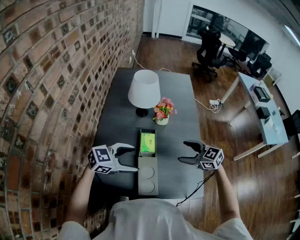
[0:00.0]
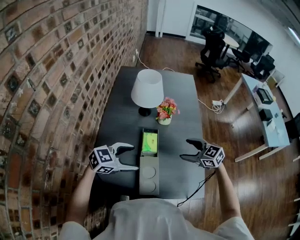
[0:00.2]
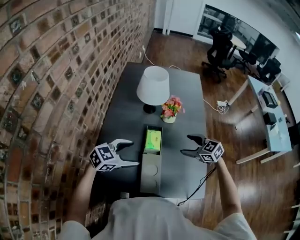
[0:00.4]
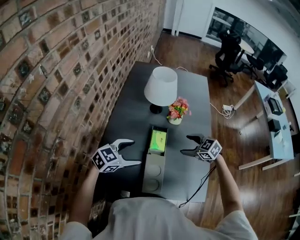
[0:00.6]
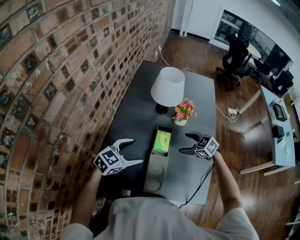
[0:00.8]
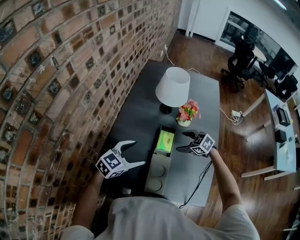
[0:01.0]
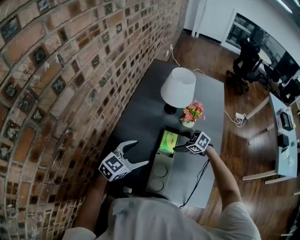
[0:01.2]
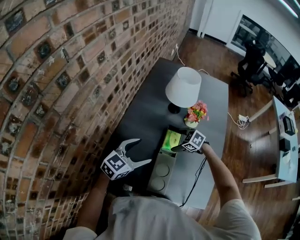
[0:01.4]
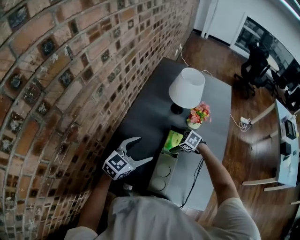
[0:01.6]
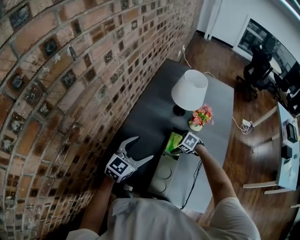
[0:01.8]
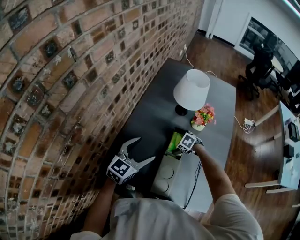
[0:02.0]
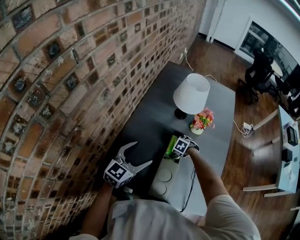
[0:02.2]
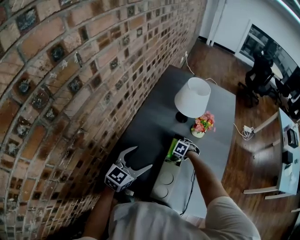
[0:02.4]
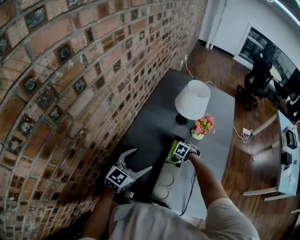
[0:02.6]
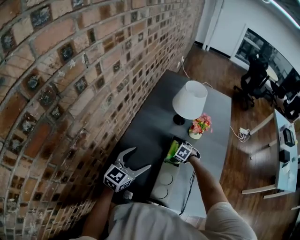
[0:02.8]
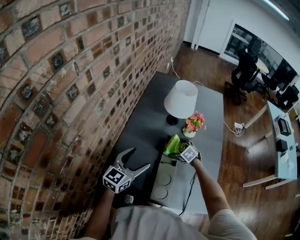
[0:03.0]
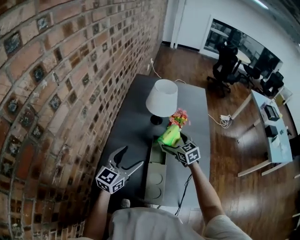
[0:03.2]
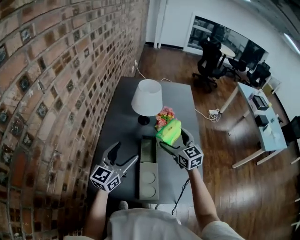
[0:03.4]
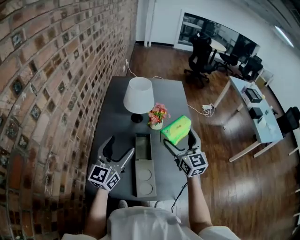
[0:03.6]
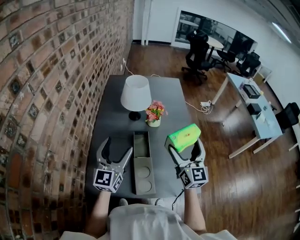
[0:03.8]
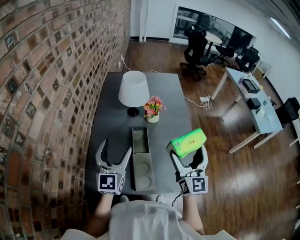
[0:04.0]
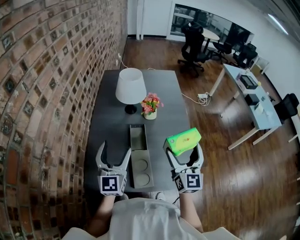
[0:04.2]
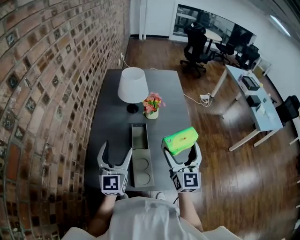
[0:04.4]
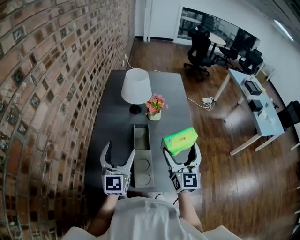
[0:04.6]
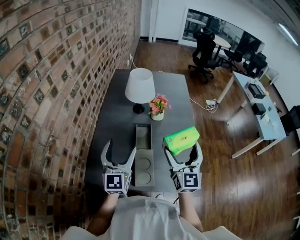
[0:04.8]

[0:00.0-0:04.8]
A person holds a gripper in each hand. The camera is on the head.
0:00.0 to 0:01.6: The left gripper shifts by about 10 cm, and turns by roughly 40 degrees. Meanwhile the right gripper travels downward by about 20 cm, angles its fingers downward, by some 30 degrees, and opens its fingers.
0:01.6 to 0:03.2: The left gripper goes approximately 5 cm upward, while the right gripper is displaced upward by approximately 15 cm, and angles its fingers upward, by roughly 30 degrees.
0:03.2 to 0:04.8: The right gripper goes some 30 cm backward, upward and to the right, and tilts its fingers roughly 40 degrees upward. The left gripper heads upward, covering roughly 5 cm, and rotates approximately 30 degrees.

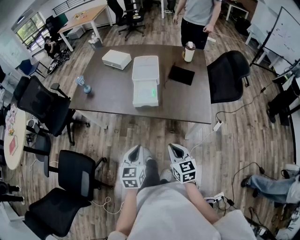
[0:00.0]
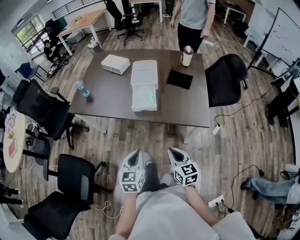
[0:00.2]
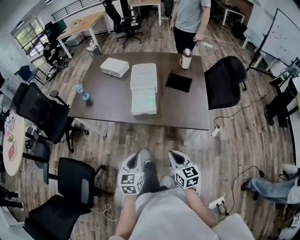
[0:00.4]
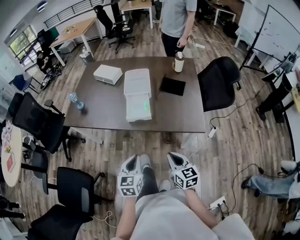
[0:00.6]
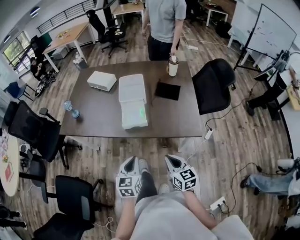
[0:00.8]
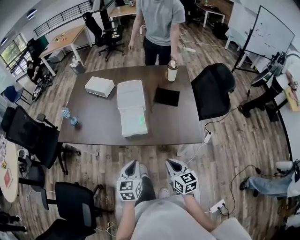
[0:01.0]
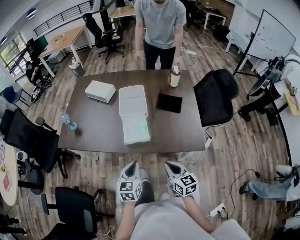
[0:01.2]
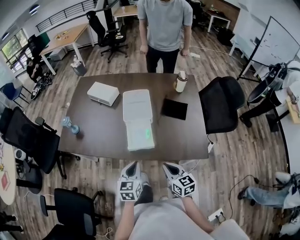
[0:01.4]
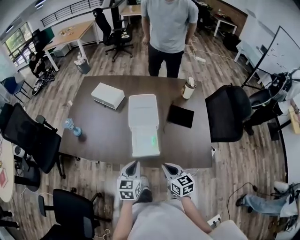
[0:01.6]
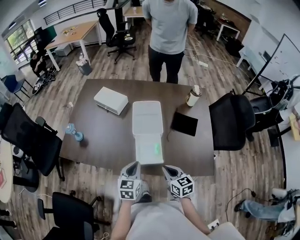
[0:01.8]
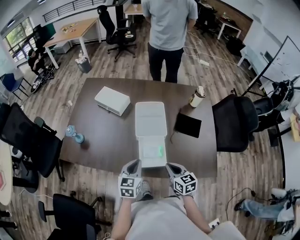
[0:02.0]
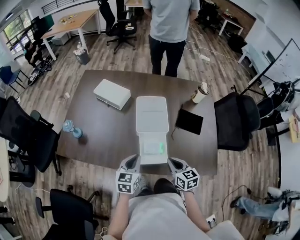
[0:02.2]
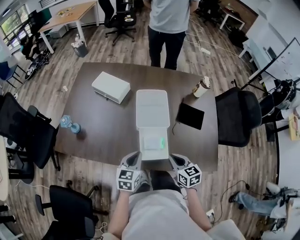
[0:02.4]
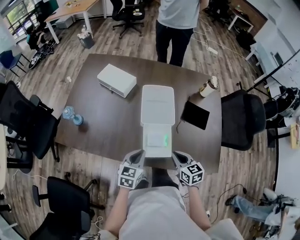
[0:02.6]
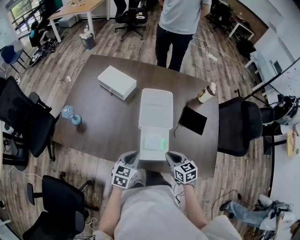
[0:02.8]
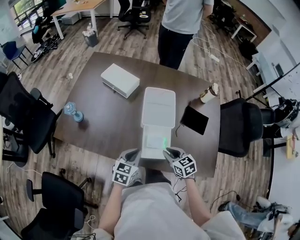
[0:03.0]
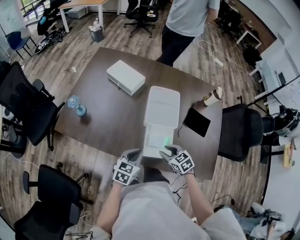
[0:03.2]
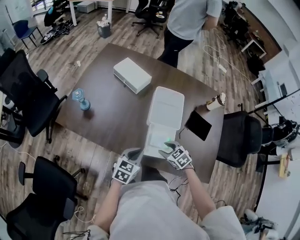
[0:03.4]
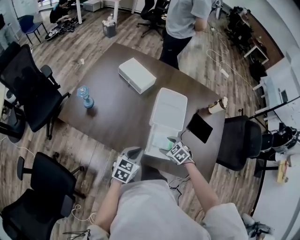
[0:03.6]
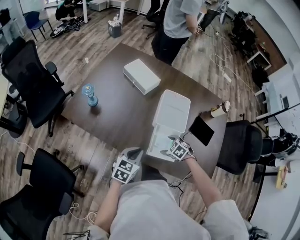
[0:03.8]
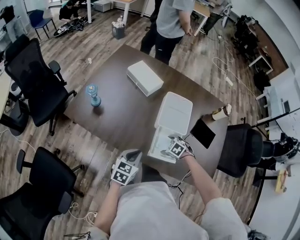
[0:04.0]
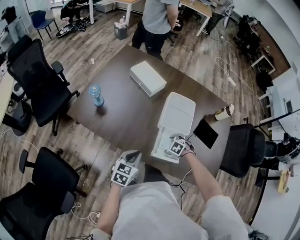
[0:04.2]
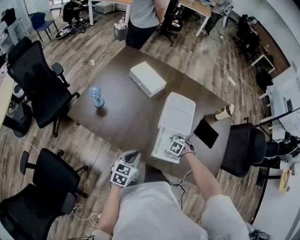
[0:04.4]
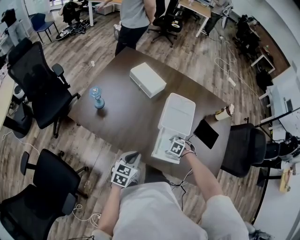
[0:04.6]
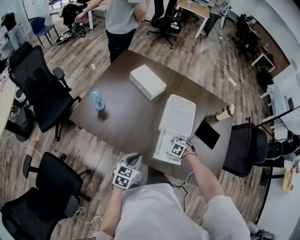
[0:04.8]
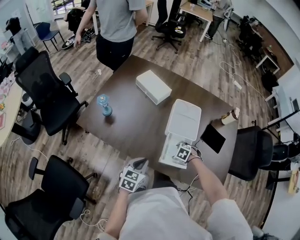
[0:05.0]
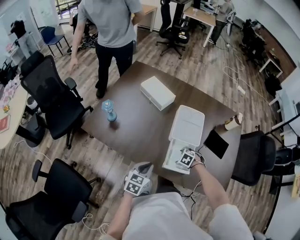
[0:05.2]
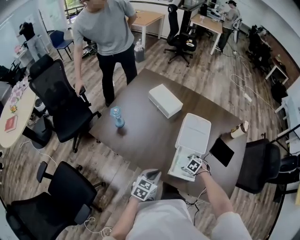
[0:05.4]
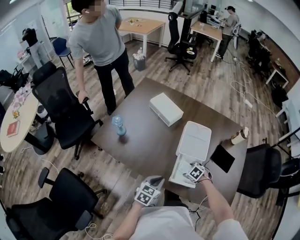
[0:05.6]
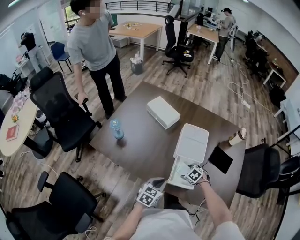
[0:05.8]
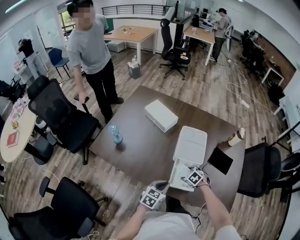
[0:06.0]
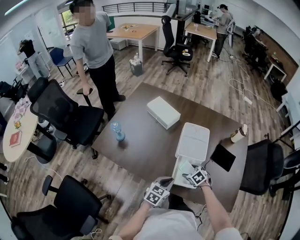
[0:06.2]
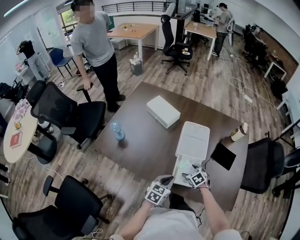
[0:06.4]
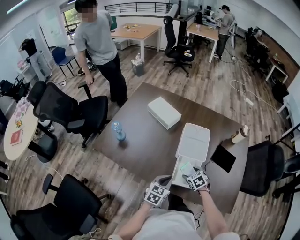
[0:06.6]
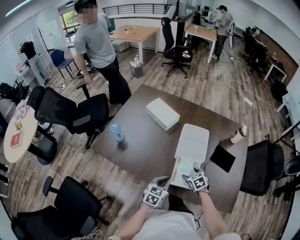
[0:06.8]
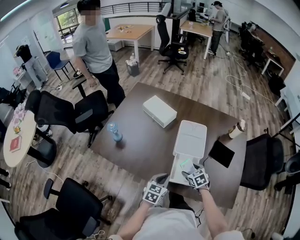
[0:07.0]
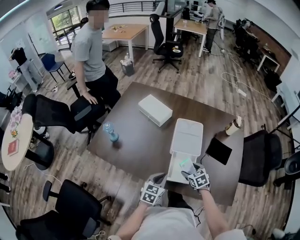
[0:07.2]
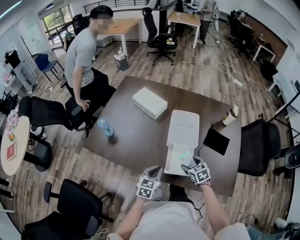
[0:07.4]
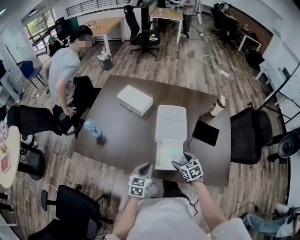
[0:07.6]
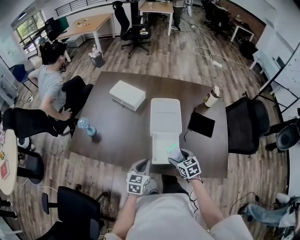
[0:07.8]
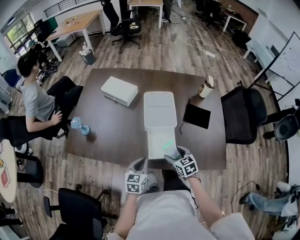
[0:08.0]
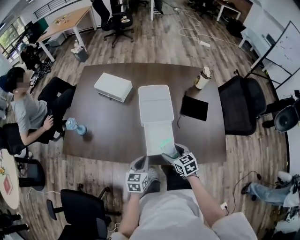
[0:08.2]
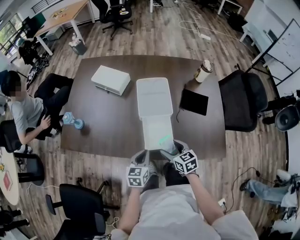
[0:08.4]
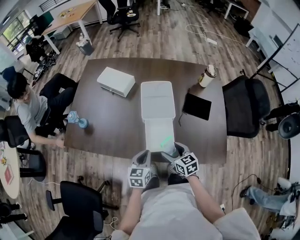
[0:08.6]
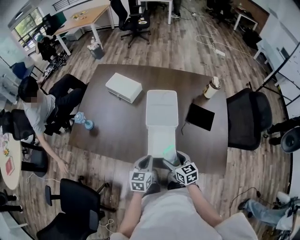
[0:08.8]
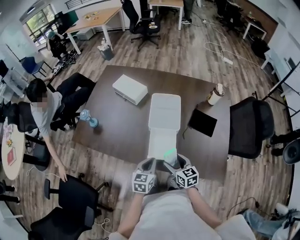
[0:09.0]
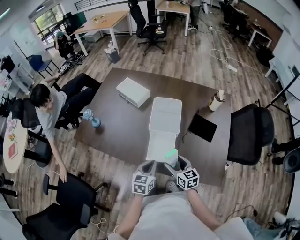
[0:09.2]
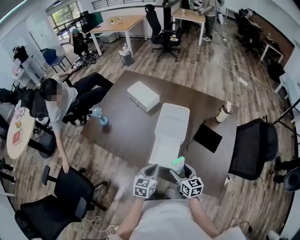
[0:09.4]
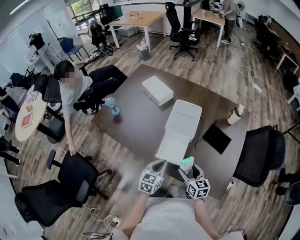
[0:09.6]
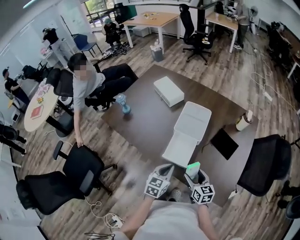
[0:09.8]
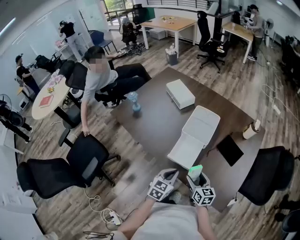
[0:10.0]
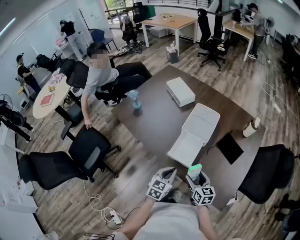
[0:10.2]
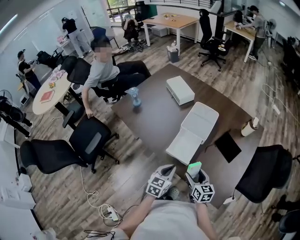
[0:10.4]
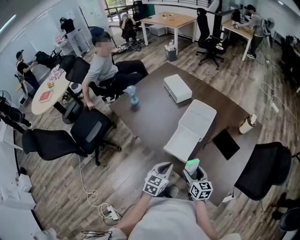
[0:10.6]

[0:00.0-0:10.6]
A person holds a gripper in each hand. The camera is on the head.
0:00.0 to 0:01.6: Both grippers move forward, some 25 cm.
0:01.6 to 0:03.0: The right gripper shifts roughly 15 cm forward and downward, and changes its angle by some 20 degrees. Meanwhile the left gripper goes some 15 cm forward, downward and to the left.
0:03.0 to 0:04.6: The left gripper ends up approximately 10 cm from where it was, while the right gripper moves downward, about 15 cm, tilts its fingers some 40 degrees downward, and opens up.
0:04.6 to 0:06.0: The right gripper rotates approximately 20 degrees. Meanwhile the left gripper changes place by approximately 10 cm.
0:06.0 to 0:07.6: The right gripper shifts about 10 cm upward, and changes its angle by approximately 40 degrees.
0:07.6 to 0:09.0: The left gripper moves to the right, about 10 cm, while the right gripper shifts approximately 5 cm backward, and turns by about 20 degrees.
0:09.0 to 0:10.6: The right gripper travels to the right and backward by some 10 cm, while the left gripper moves backward, approximately 10 cm.

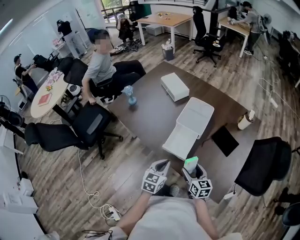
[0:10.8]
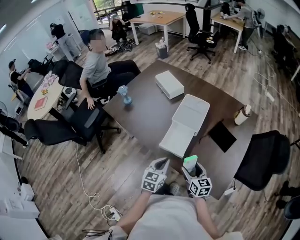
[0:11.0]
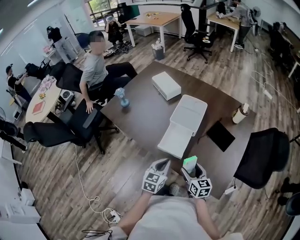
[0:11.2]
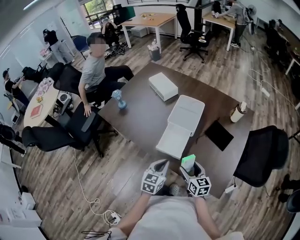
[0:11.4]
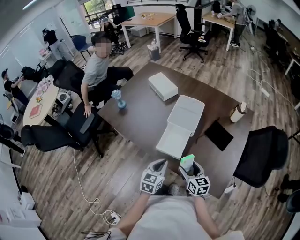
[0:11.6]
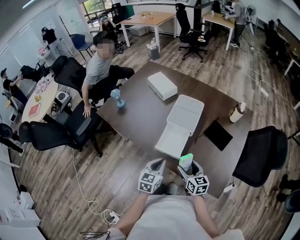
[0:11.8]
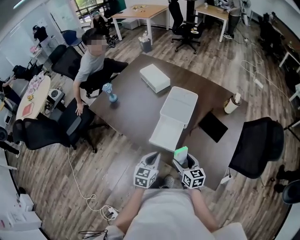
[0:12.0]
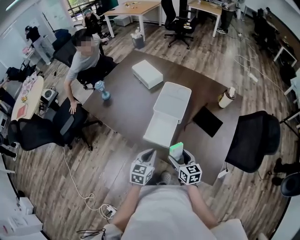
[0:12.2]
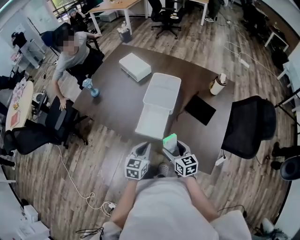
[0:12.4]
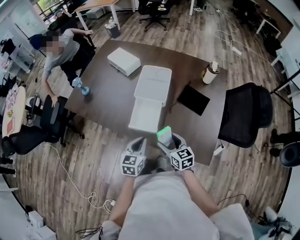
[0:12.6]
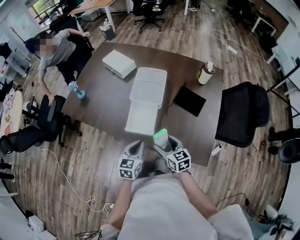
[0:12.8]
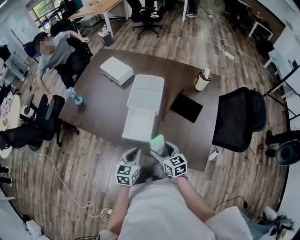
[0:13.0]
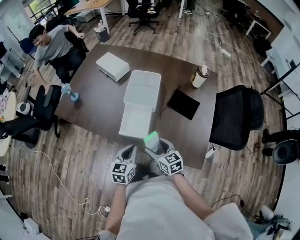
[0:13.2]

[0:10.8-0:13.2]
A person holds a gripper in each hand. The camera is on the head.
0:10.8 to 0:13.2: The grippers stay close to where they were, moving slightly.

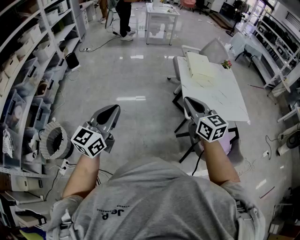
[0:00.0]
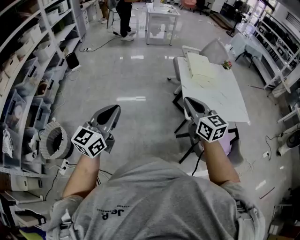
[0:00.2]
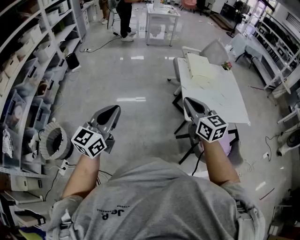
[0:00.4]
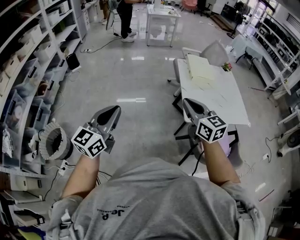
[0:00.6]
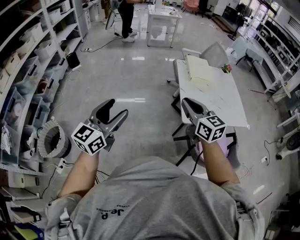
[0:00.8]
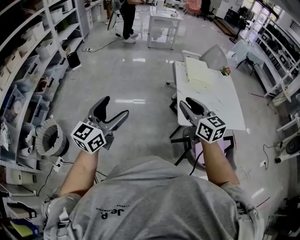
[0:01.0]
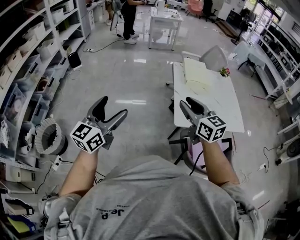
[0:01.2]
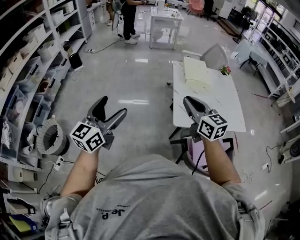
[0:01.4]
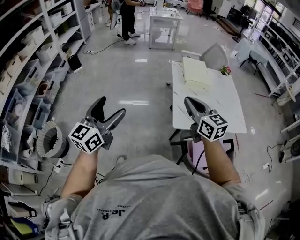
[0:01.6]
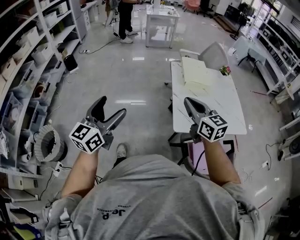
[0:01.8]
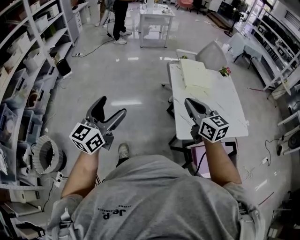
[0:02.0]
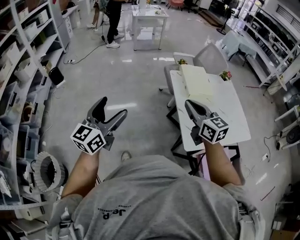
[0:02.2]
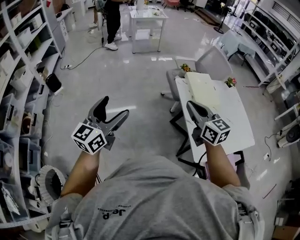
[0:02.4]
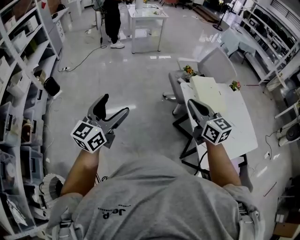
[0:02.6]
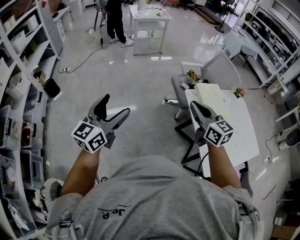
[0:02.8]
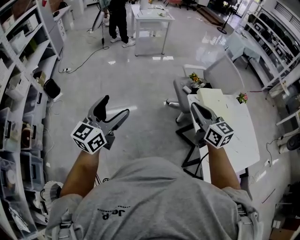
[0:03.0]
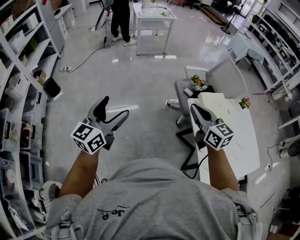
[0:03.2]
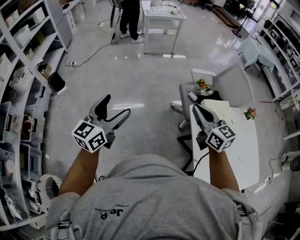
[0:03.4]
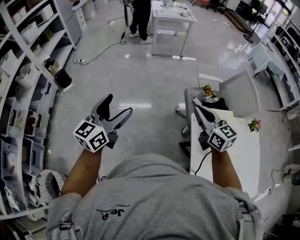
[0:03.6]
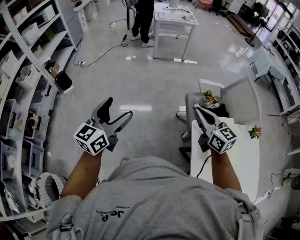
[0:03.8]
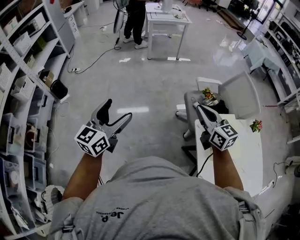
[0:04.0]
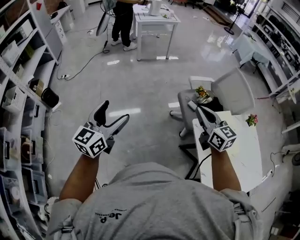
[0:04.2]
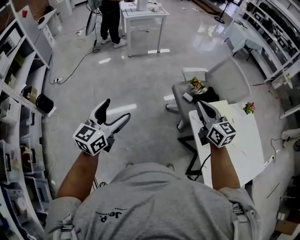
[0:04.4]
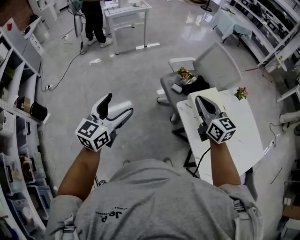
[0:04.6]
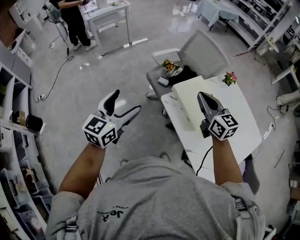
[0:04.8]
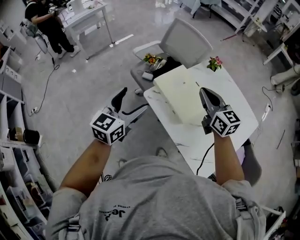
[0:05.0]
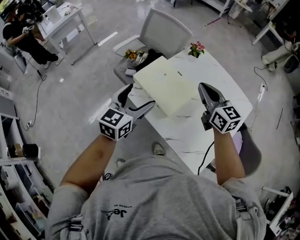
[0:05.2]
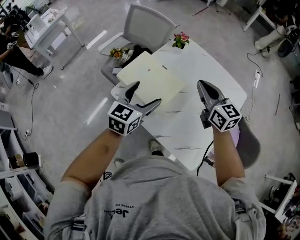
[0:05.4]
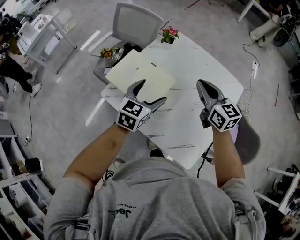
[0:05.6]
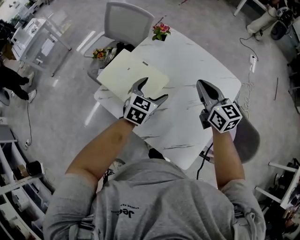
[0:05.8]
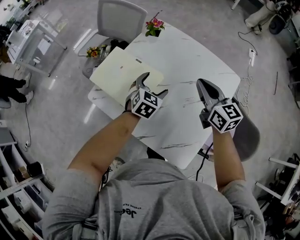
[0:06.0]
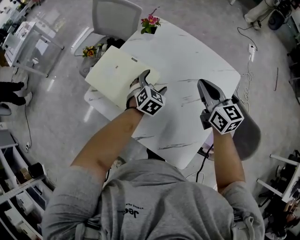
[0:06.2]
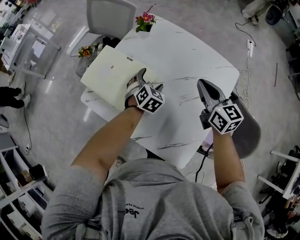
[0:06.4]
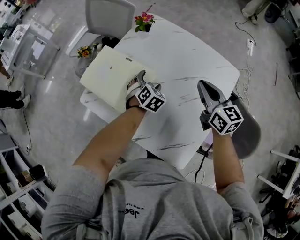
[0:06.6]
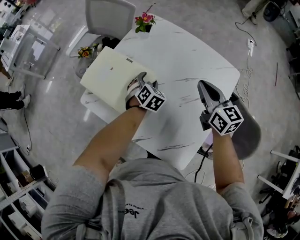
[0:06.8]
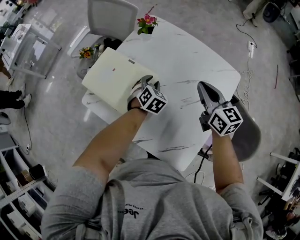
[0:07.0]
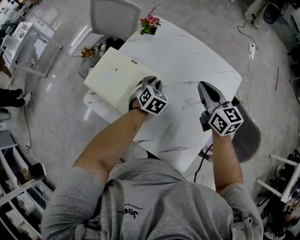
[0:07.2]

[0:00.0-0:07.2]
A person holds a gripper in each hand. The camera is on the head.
0:00.0 to 0:01.4: Both grippers travel together to the right, approximately 10 cm. The left gripper opens up.
0:01.4 to 0:02.8: The two grippers travel together, forward and to the left, about 50 cm.
0:02.8 to 0:04.4: Both grippers travel together forward, about 30 cm.
0:04.4 to 0:05.8: The pair of grippers is taken roughly 60 cm. The left gripper swivels some 50 degrees; the right gripper changes its angle by roughly 40 degrees.
0:05.8 to 0:07.2: The right gripper shifts by about 5 cm. The left gripper heads downward and forward, covering about 10 cm, turns by approximately 20 degrees, and closes.
